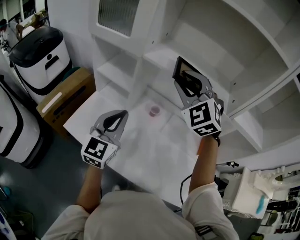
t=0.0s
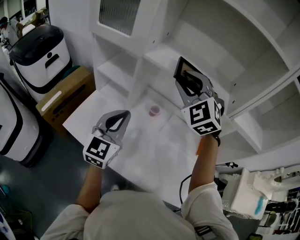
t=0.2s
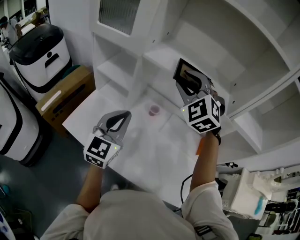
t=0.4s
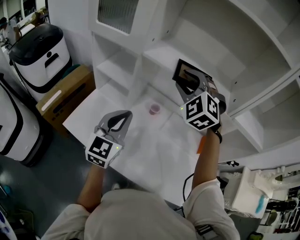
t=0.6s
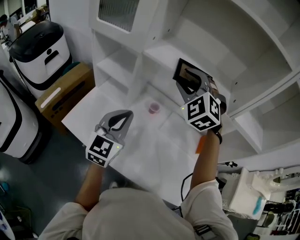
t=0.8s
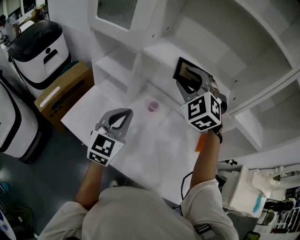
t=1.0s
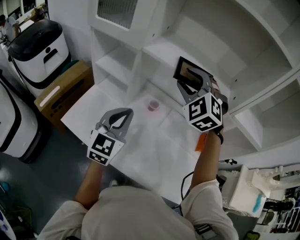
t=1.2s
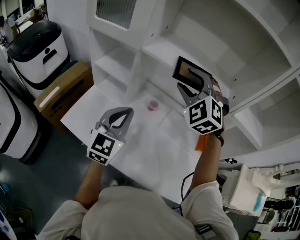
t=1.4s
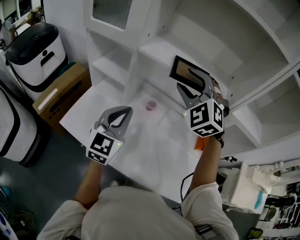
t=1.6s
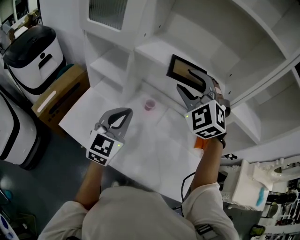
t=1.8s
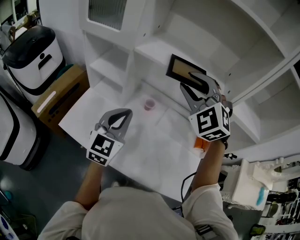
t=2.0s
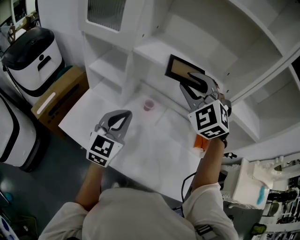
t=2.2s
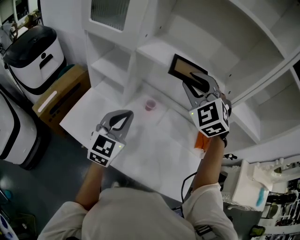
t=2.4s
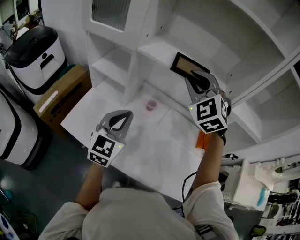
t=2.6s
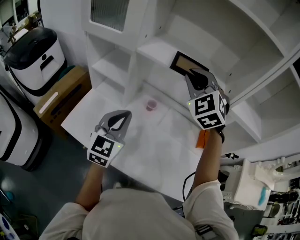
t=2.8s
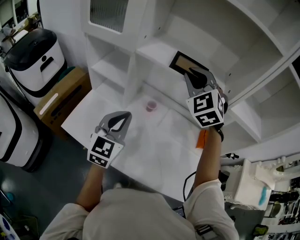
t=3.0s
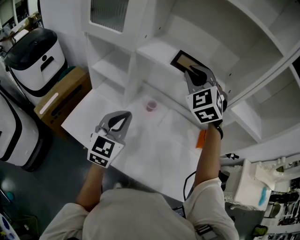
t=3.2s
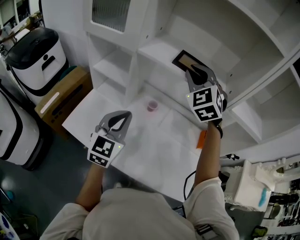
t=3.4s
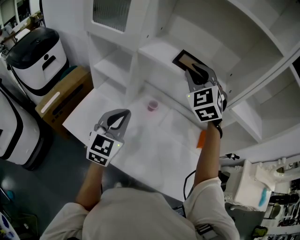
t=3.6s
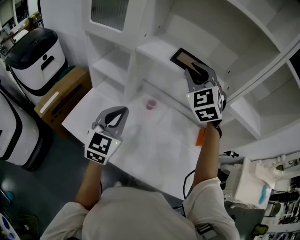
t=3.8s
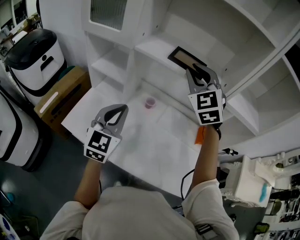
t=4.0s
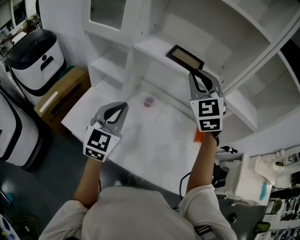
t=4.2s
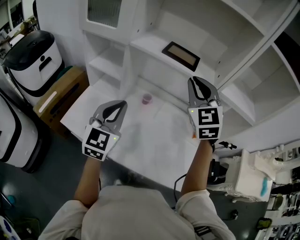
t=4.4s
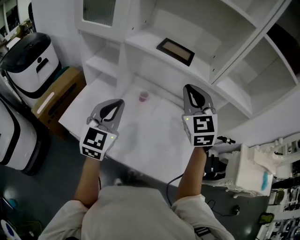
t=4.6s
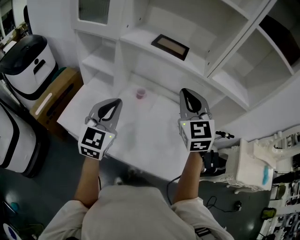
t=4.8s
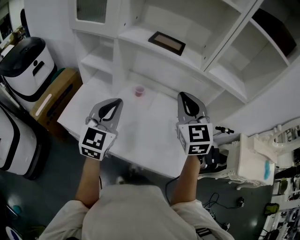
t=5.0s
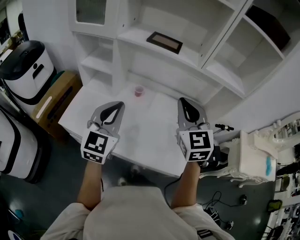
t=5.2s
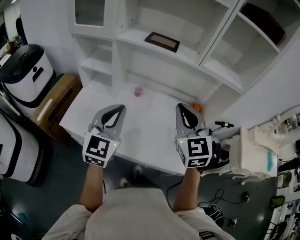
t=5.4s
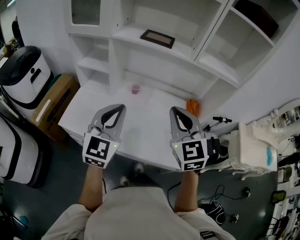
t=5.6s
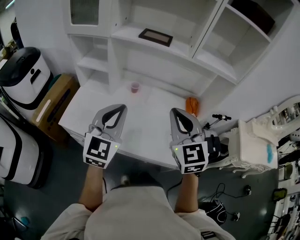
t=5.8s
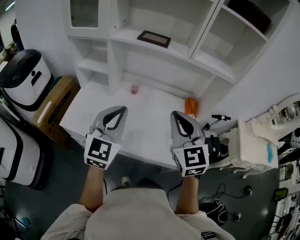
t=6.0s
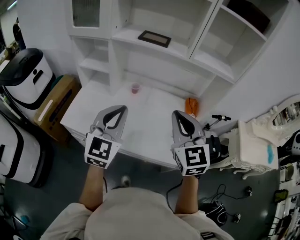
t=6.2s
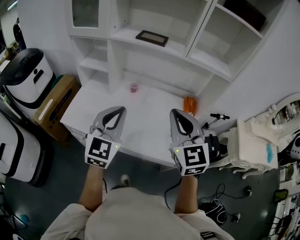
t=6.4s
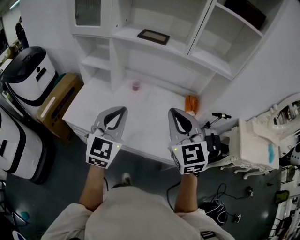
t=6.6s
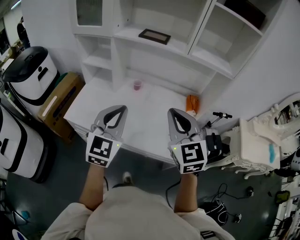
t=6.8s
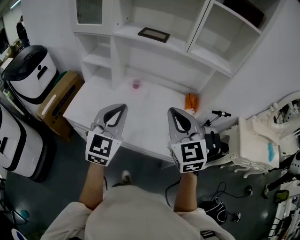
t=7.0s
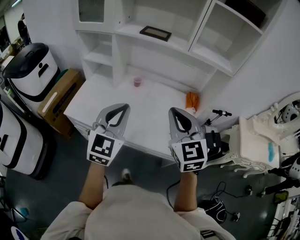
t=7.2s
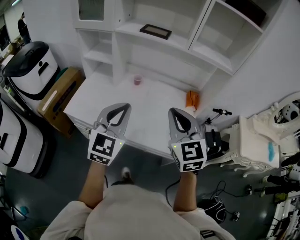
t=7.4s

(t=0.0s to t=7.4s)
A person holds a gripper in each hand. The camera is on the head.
t=0.0s - t=1.4s: The right gripper opens up.
t=1.4s - t=3.0s: The right gripper closes its fingers.
t=3.0s - t=4.4s: The left gripper shifts by about 5 cm. Meanwhile the right gripper heads backward and to the right, covering approximately 10 cm, and turns by approximately 20 degrees.
t=4.4s - t=6.0s: The right gripper is displaced backward by approximately 25 cm. Meanwhile the left gripper heads backward and to the right, covering about 15 cm.
t=6.0s - t=7.4s: Both grippers travel together backward, approximately 5 cm.

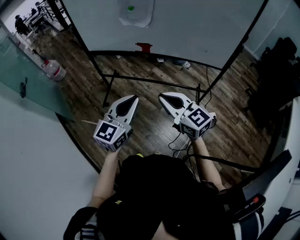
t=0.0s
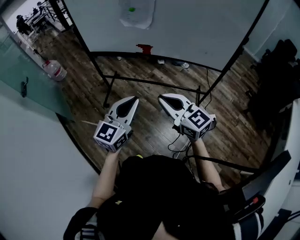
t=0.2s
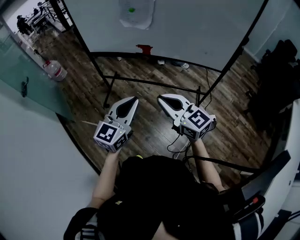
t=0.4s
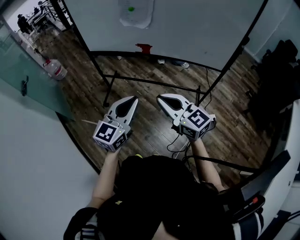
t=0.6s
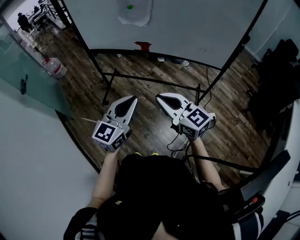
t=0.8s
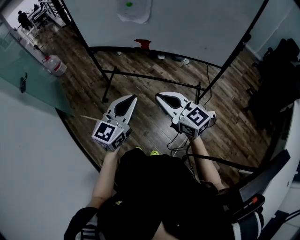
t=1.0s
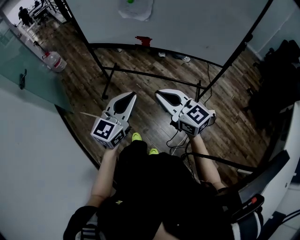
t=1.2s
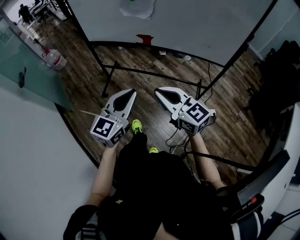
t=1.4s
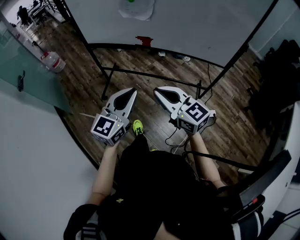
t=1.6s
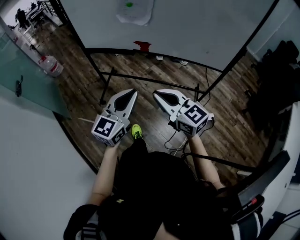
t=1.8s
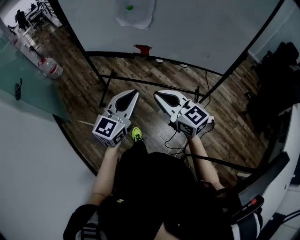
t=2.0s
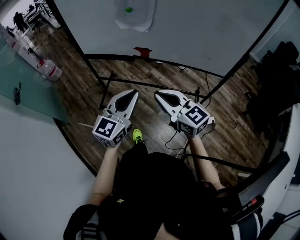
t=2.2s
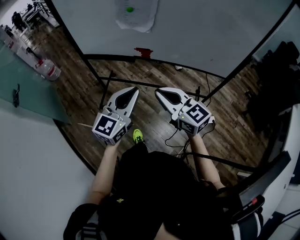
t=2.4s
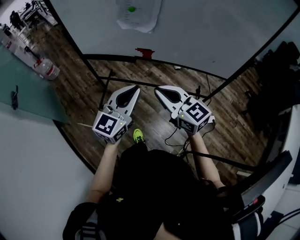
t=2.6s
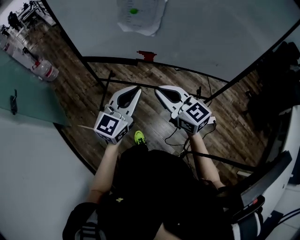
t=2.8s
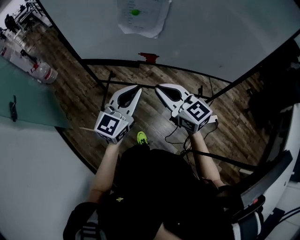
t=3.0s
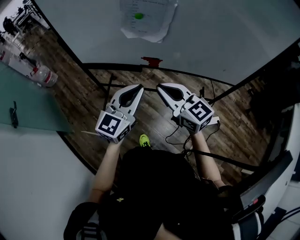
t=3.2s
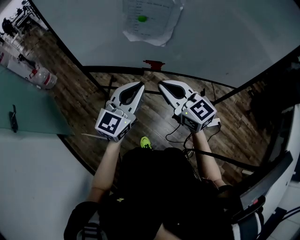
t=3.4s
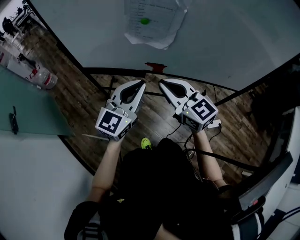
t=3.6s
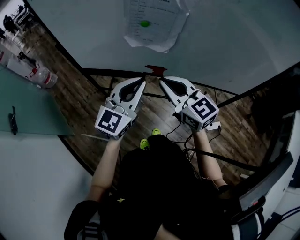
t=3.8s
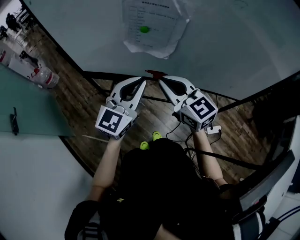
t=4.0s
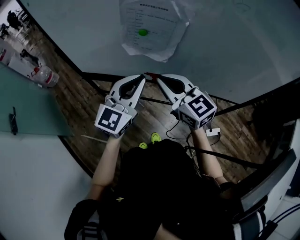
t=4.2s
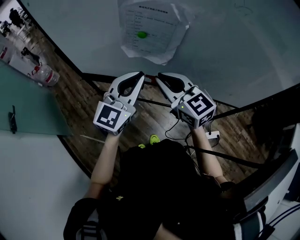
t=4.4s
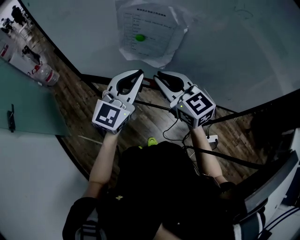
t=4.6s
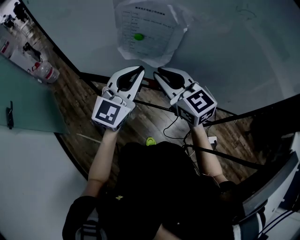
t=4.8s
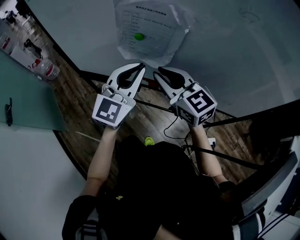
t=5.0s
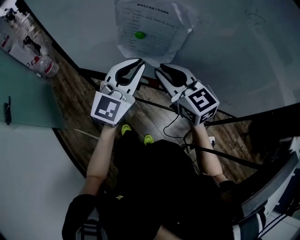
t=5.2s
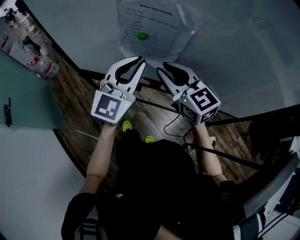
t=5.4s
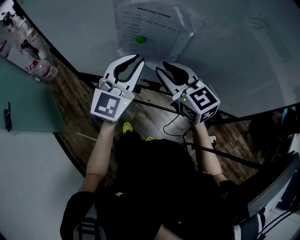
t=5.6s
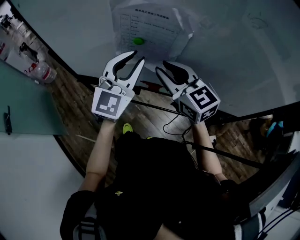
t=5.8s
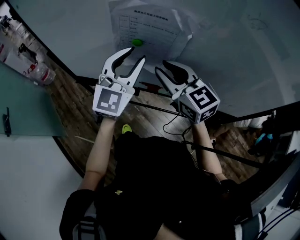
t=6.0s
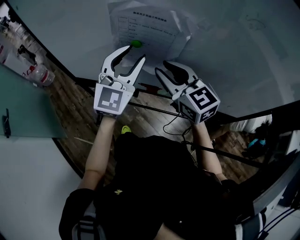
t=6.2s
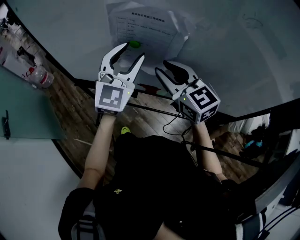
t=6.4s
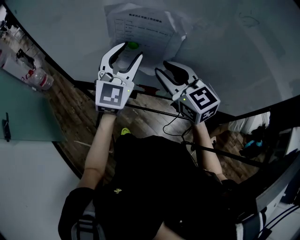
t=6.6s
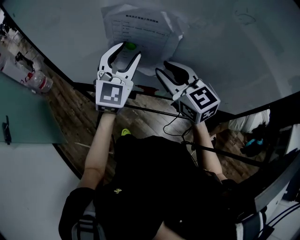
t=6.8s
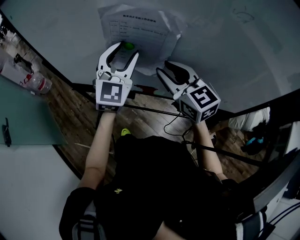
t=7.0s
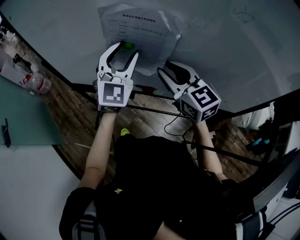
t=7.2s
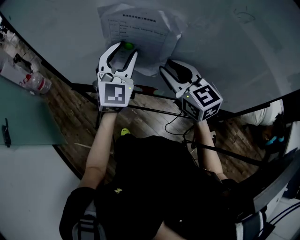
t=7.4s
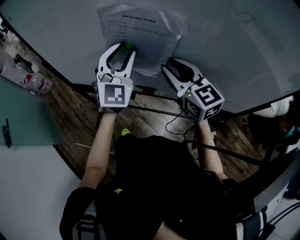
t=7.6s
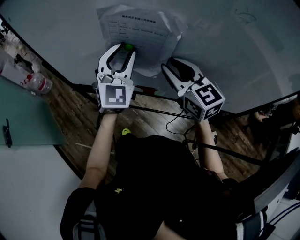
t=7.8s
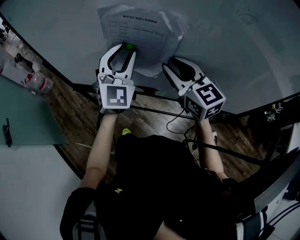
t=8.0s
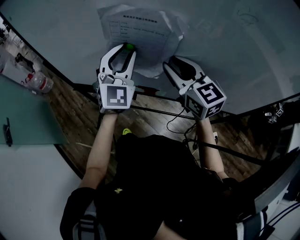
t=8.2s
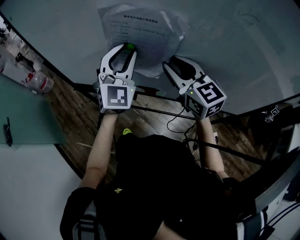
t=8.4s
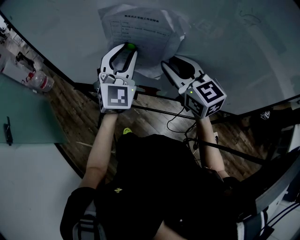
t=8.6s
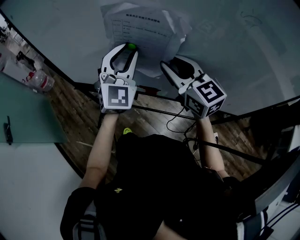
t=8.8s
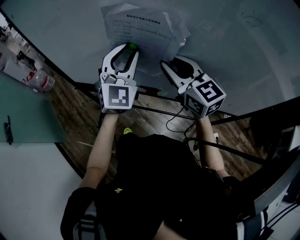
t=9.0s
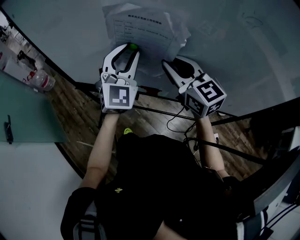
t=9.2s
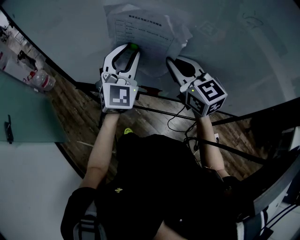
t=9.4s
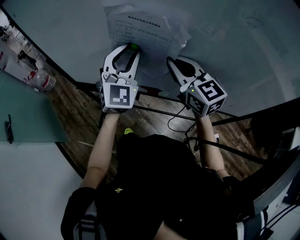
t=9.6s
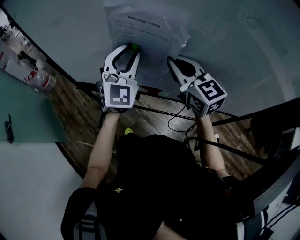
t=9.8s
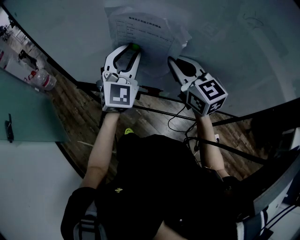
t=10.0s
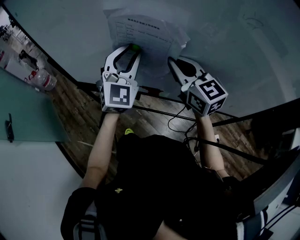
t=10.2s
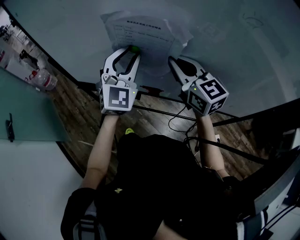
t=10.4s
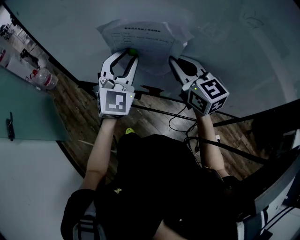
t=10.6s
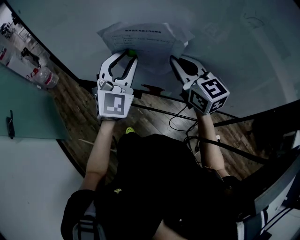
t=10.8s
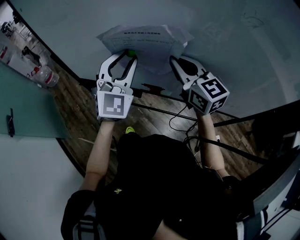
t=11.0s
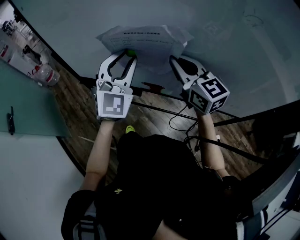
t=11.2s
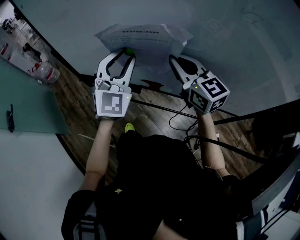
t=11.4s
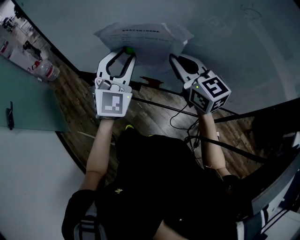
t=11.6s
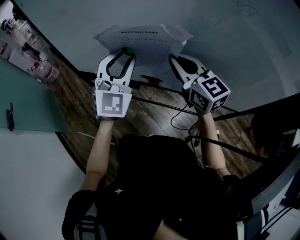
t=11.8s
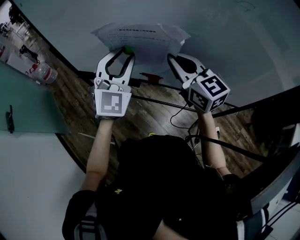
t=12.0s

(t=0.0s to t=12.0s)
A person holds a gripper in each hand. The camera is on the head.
t=0.0s - t=1.6s: The grippers make only small movements.
t=1.6s - t=3.0s: The two grippers go some 20 cm forward.
t=3.0s - t=4.4s: The two grippers go approximately 15 cm forward.
t=4.4s - t=6.0s: Both grippers travel together forward, some 10 cm. The left gripper opens its fingers.
t=6.0s - t=9.0s: There are only small adjustments of the grippers.
t=9.0s - t=10.4s: The right gripper closes its fingers.
t=10.4s - t=12.0s: The left gripper travels backward by roughly 5 cm, while the right gripper moves about 5 cm.

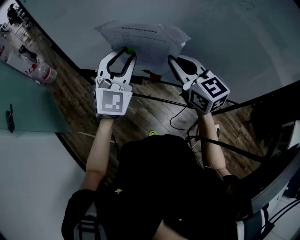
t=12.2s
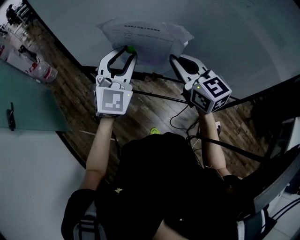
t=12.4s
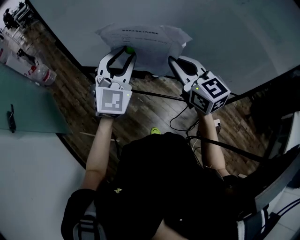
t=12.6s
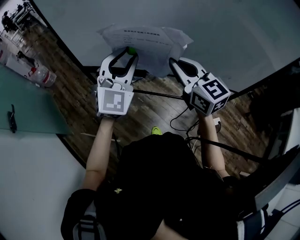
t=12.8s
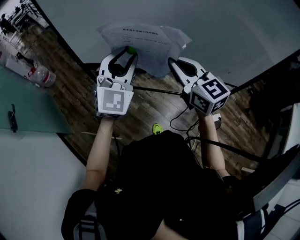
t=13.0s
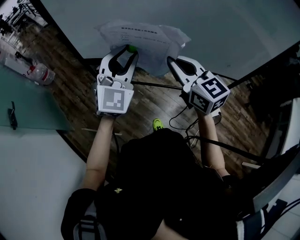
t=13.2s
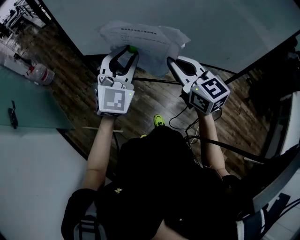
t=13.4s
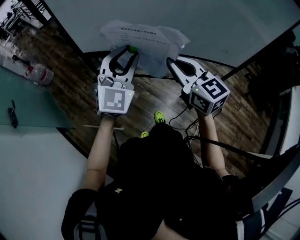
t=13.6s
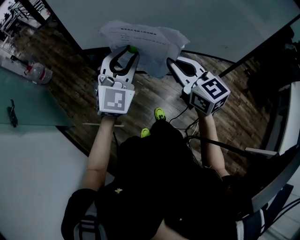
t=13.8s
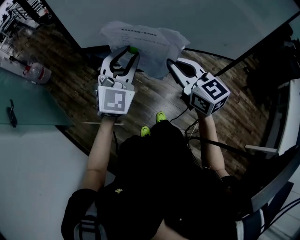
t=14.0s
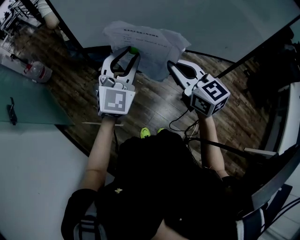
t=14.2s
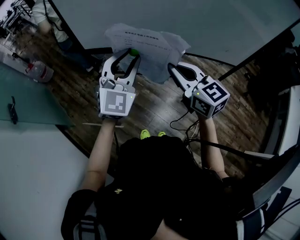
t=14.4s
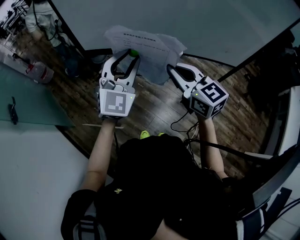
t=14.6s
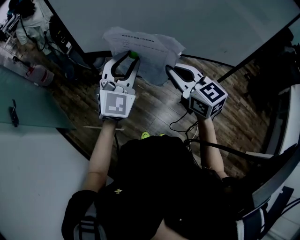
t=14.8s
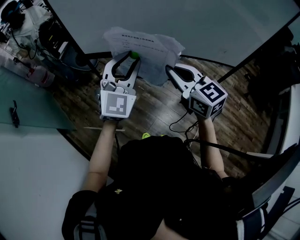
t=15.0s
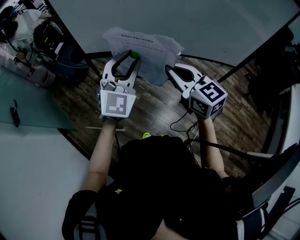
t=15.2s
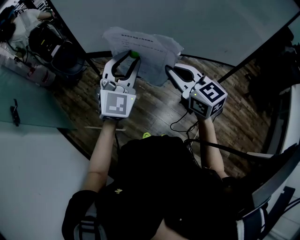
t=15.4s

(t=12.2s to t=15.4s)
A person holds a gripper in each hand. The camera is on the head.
t=12.2s - t=13.8s: The two grippers go roughly 20 cm backward and to the left.
t=13.8s - t=15.4s: The grippers stay close to where they were, moving slightly.

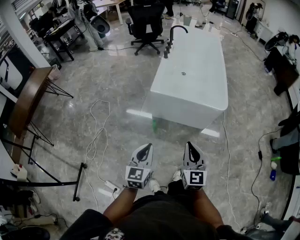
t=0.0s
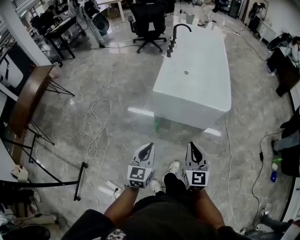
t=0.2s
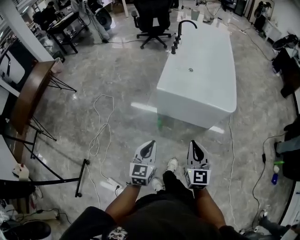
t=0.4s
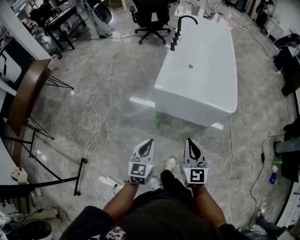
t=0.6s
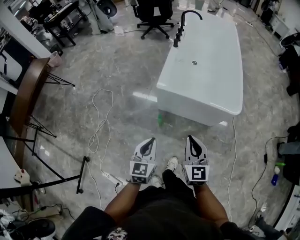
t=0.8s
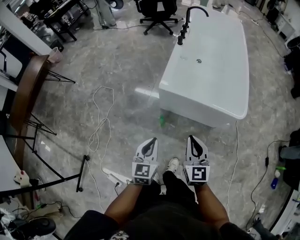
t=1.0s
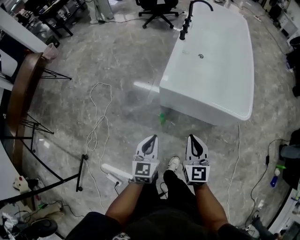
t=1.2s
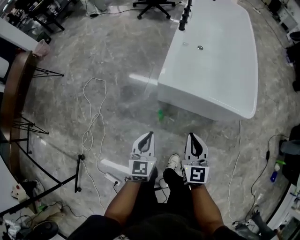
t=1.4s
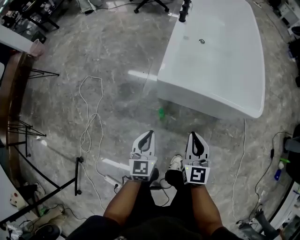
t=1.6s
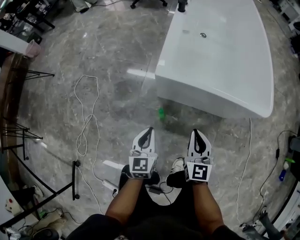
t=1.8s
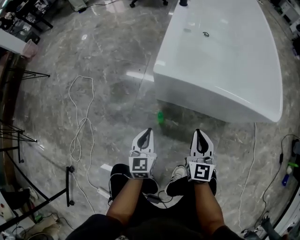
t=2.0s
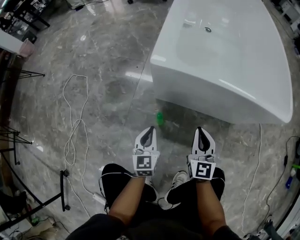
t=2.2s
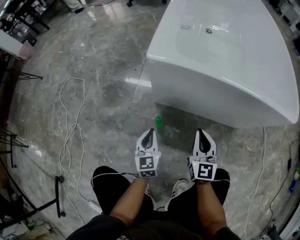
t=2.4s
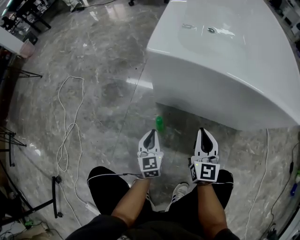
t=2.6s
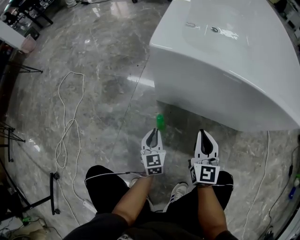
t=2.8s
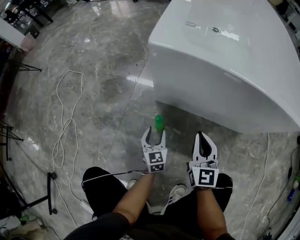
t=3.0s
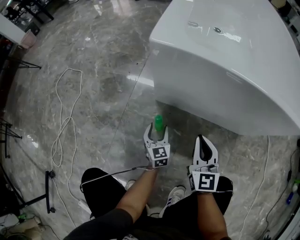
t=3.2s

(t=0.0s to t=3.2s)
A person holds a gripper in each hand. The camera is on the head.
t=0.0s - t=1.6s: Both grippers travel together forward and downward, about 40 cm.
t=1.6s - t=3.2s: Both grippers move downward, some 50 cm. The left gripper opens up.
